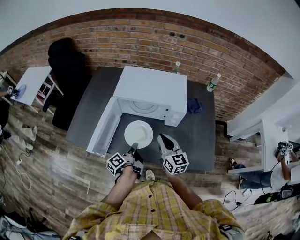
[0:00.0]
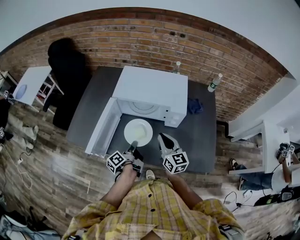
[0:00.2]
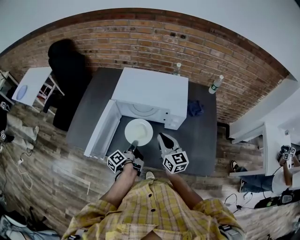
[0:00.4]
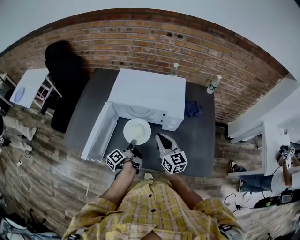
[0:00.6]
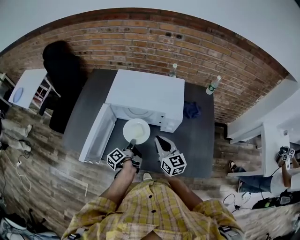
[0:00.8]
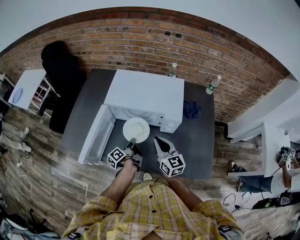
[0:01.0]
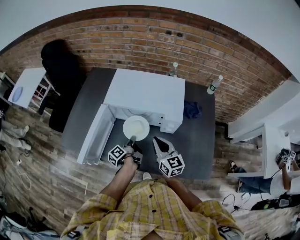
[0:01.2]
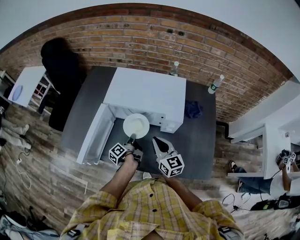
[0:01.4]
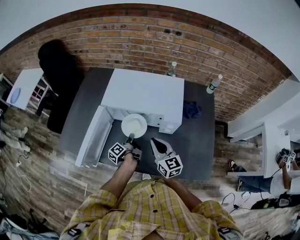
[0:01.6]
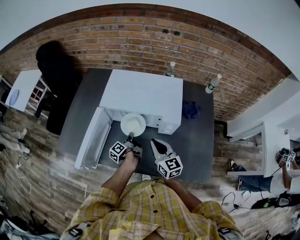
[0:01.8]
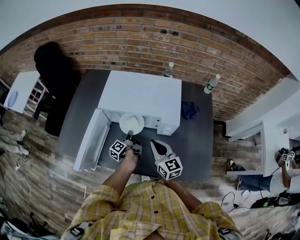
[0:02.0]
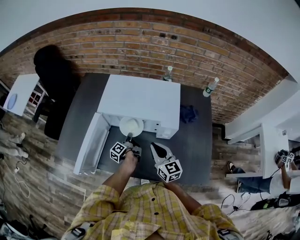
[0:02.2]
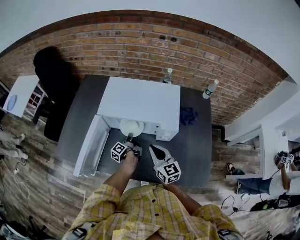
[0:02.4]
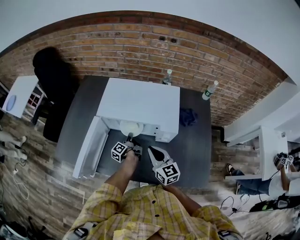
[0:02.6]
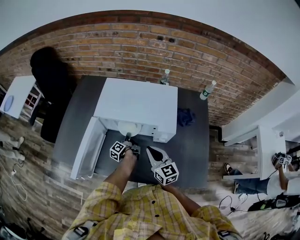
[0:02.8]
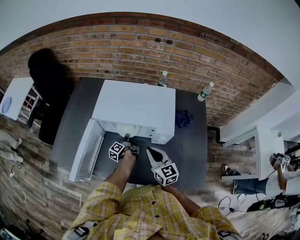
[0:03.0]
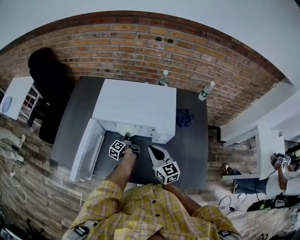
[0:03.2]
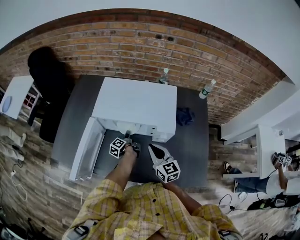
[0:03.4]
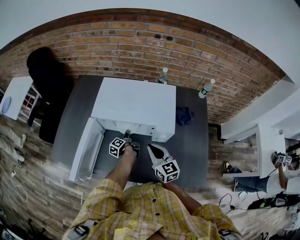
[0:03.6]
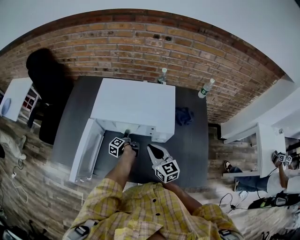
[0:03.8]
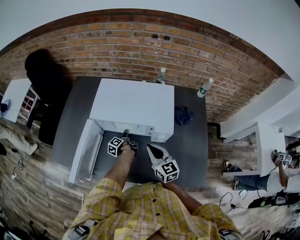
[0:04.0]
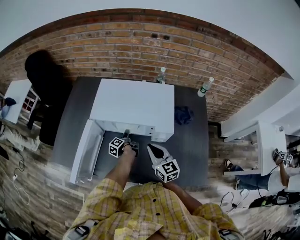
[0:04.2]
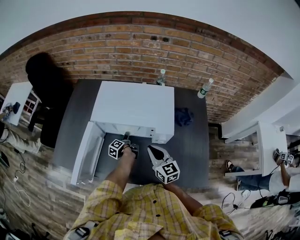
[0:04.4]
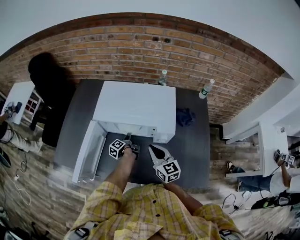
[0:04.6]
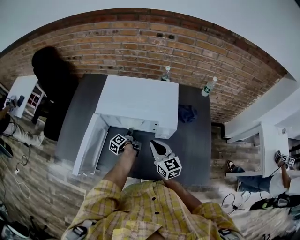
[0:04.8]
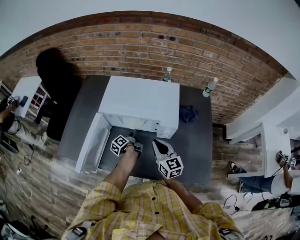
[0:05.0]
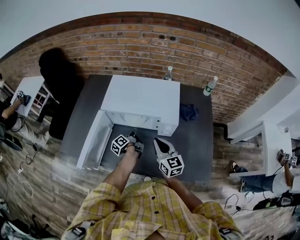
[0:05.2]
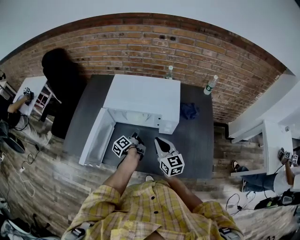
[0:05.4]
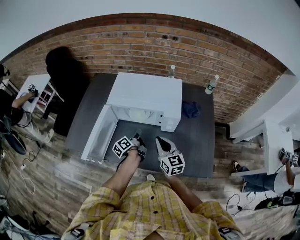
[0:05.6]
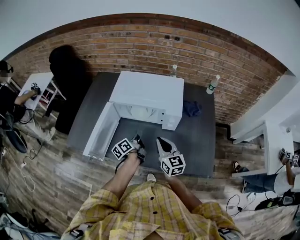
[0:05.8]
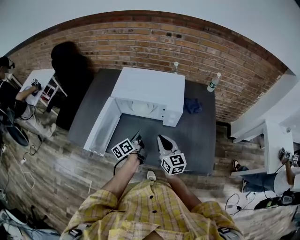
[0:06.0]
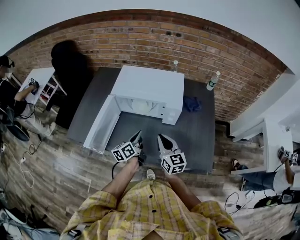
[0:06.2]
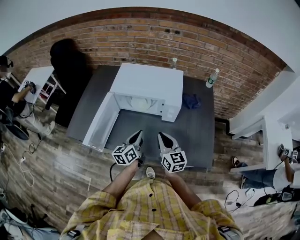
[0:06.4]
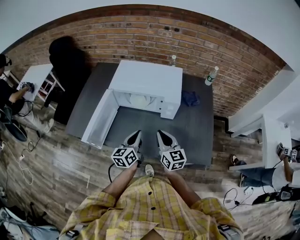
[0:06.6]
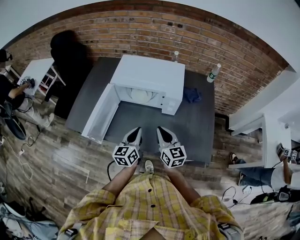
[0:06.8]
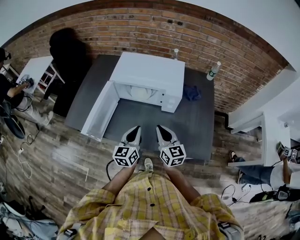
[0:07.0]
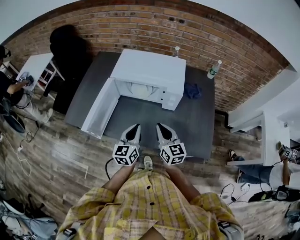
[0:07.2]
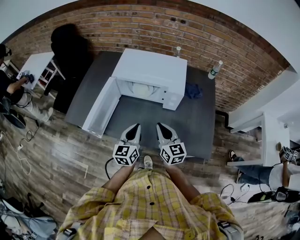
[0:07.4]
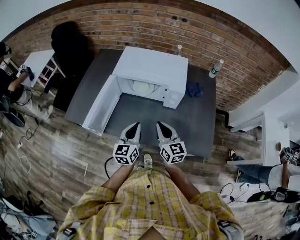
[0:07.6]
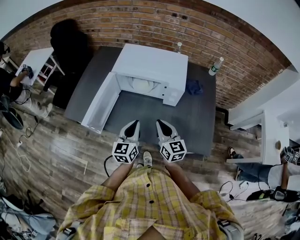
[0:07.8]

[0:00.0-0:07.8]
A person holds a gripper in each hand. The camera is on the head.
0:00.0 to 0:01.6: The right gripper shifts by about 10 cm.
0:04.6 to 0:06.2: The right gripper shifts by approximately 10 cm.

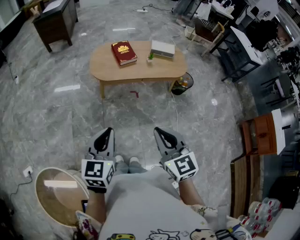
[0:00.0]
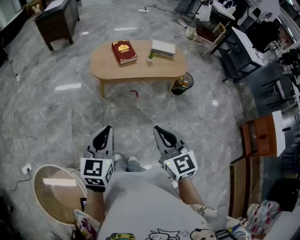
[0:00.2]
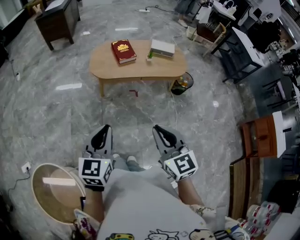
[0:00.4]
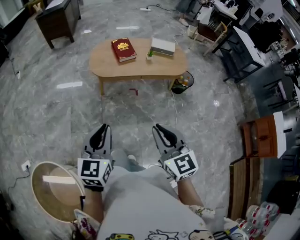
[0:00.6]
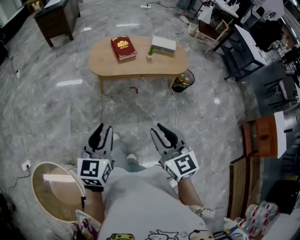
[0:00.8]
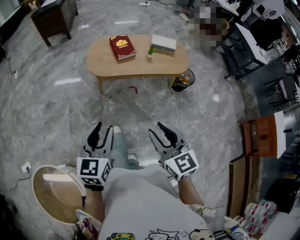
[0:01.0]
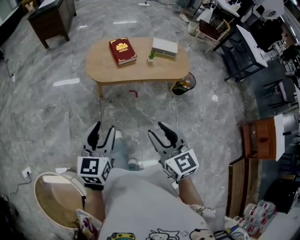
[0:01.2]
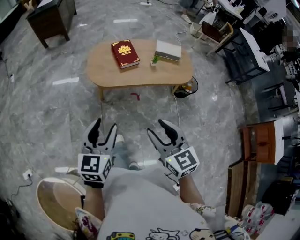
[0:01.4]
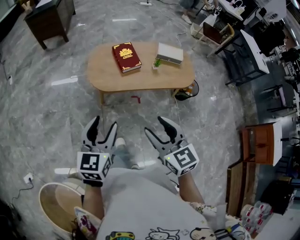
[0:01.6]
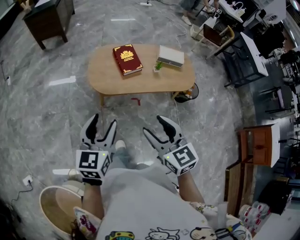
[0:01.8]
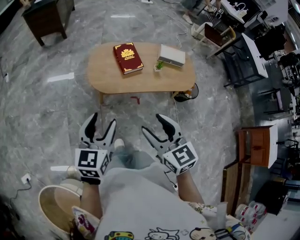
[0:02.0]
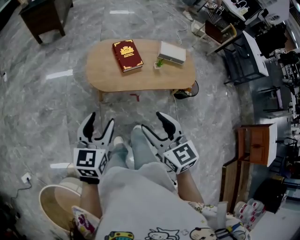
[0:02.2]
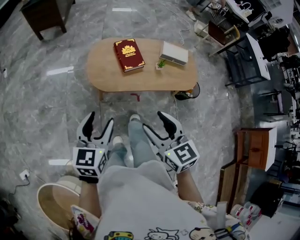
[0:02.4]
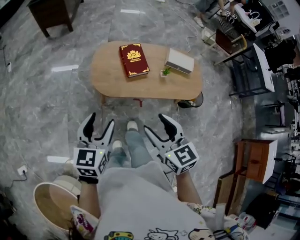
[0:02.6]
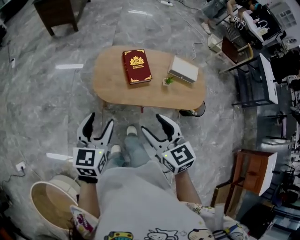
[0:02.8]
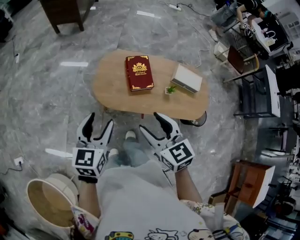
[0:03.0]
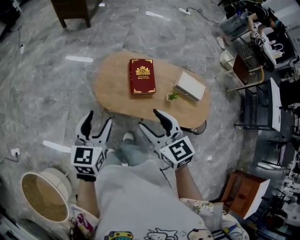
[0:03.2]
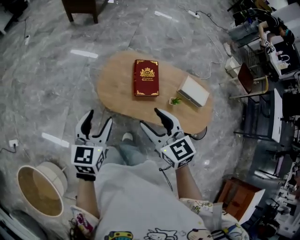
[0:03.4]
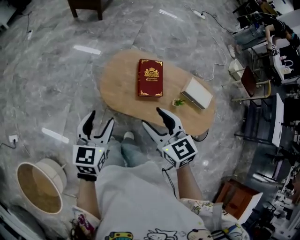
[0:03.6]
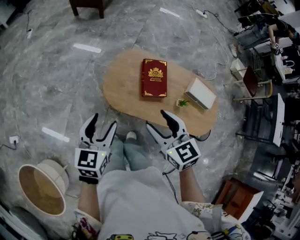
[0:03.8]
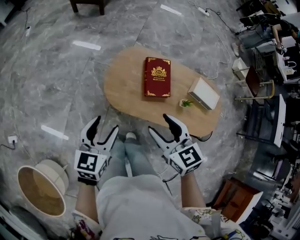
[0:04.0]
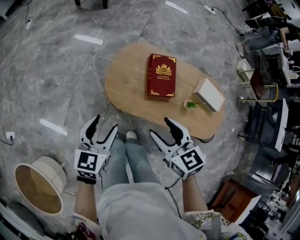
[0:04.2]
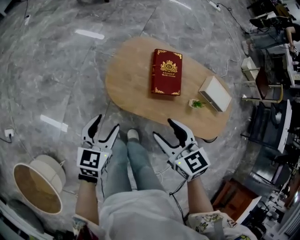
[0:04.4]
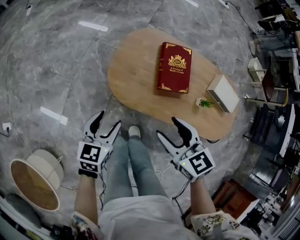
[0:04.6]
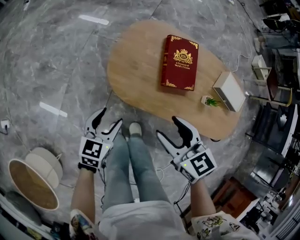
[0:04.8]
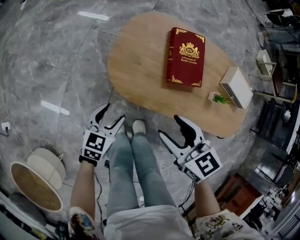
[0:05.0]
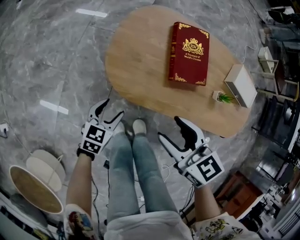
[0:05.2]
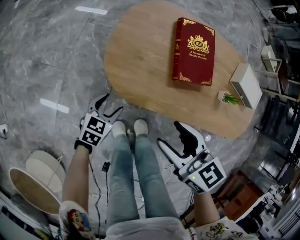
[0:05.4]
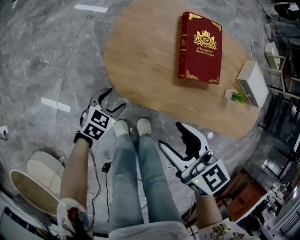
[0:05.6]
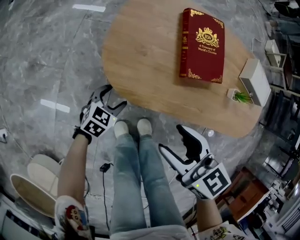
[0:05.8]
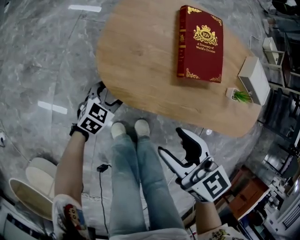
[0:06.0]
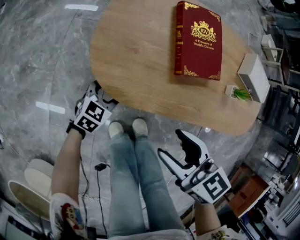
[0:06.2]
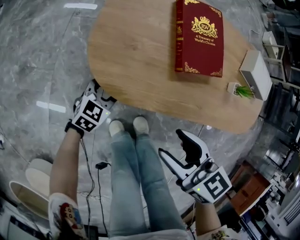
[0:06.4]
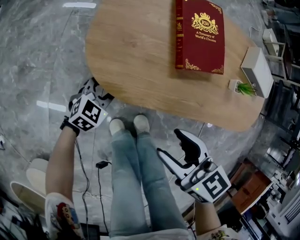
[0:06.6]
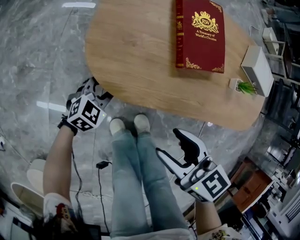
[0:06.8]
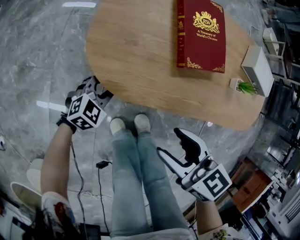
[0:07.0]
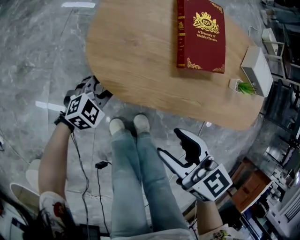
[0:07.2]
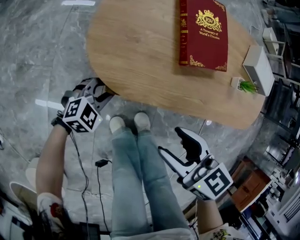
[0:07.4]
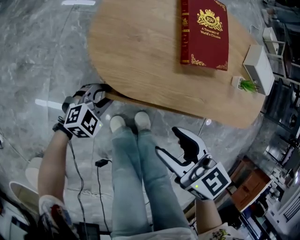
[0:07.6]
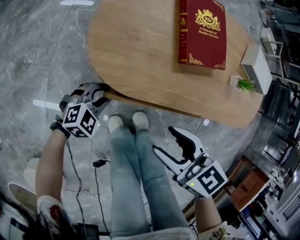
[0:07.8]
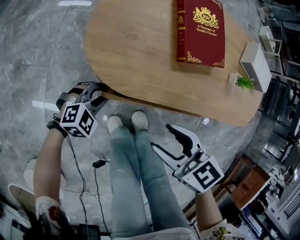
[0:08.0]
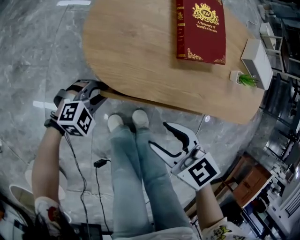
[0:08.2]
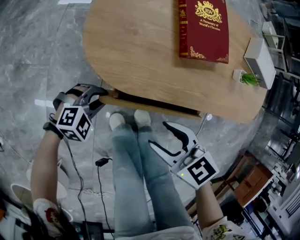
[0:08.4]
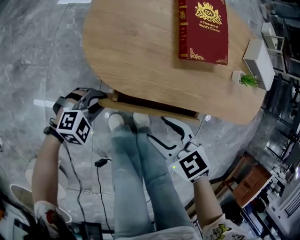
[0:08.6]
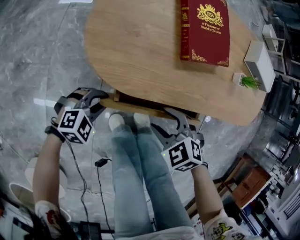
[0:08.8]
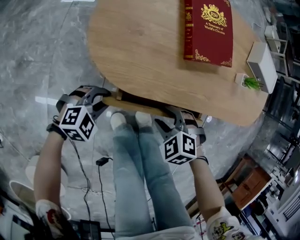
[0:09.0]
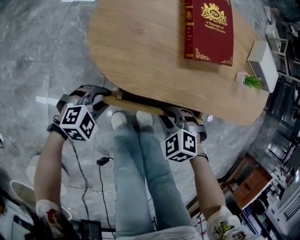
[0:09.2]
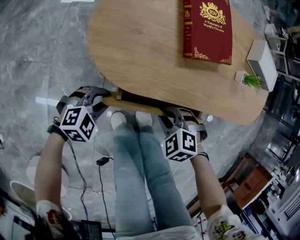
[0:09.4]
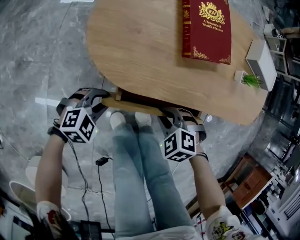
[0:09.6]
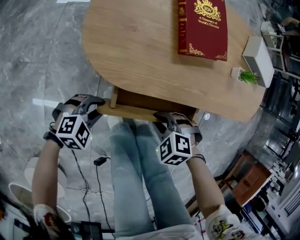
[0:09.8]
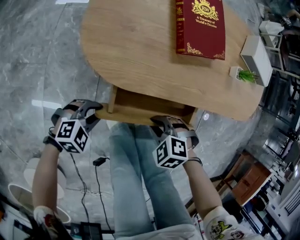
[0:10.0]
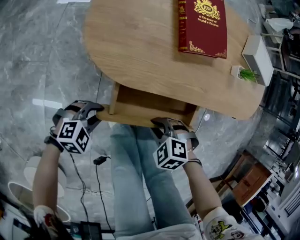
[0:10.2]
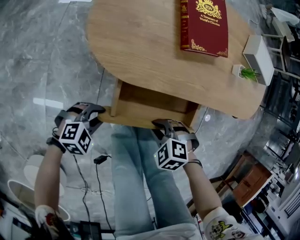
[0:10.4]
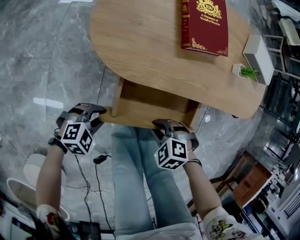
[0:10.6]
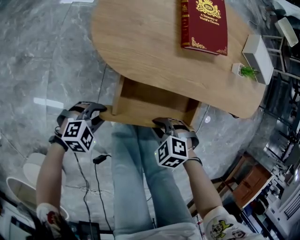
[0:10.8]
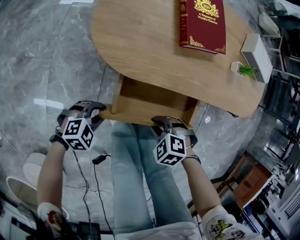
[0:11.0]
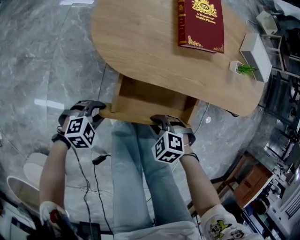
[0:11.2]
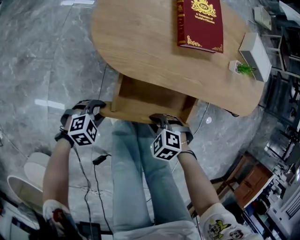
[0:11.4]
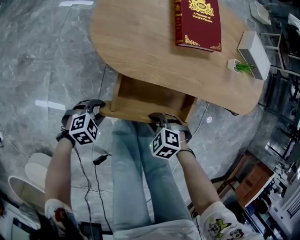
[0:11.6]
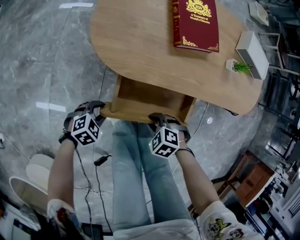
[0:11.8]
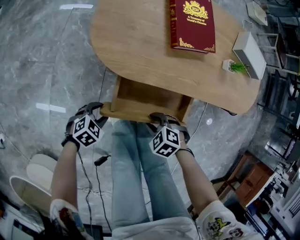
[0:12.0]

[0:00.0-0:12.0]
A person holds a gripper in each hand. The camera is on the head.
0:00.0 to 0:01.6: The grippers both shift forward by approximately 20 cm. The left gripper opens, while the right gripper opens up.
0:01.6 to 0:03.0: Both grippers move forward, approximately 20 cm.
0:03.0 to 0:04.4: The left gripper shifts some 20 cm downward. The right gripper goes about 15 cm downward and forward.
0:04.4 to 0:06.0: The left gripper is displaced downward by some 35 cm, and turns by approximately 30 degrees. Meanwhile the right gripper goes approximately 20 cm downward.
0:06.0 to 0:07.6: The left gripper swivels about 30 degrees, and closes.
0:07.6 to 0:09.0: The right gripper moves downward, some 20 cm, and tips its fingers downward by about 40 degrees.
0:09.0 to 0:10.4: The right gripper ends up approximately 10 cm from where it was, and closes up. The left gripper changes place by roughly 10 cm.
0:10.4 to 0:12.0: The left gripper changes its angle by about 20 degrees.

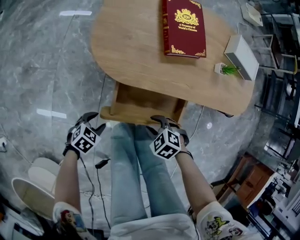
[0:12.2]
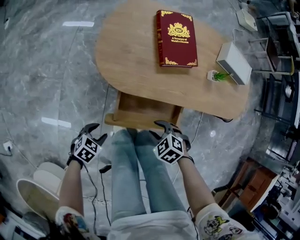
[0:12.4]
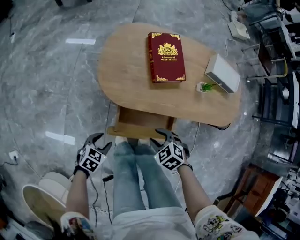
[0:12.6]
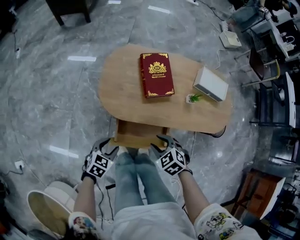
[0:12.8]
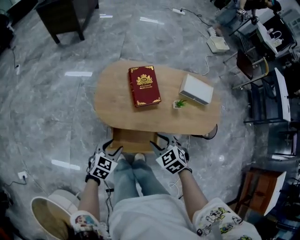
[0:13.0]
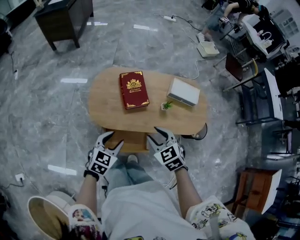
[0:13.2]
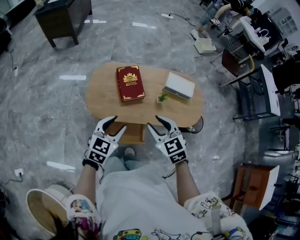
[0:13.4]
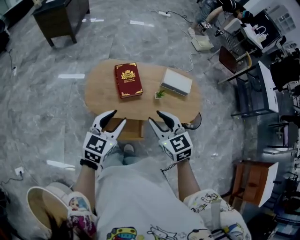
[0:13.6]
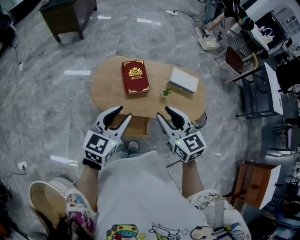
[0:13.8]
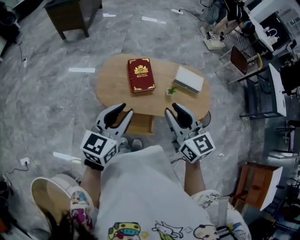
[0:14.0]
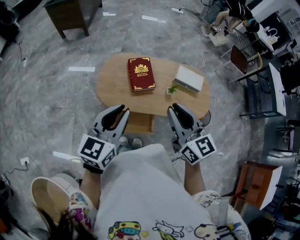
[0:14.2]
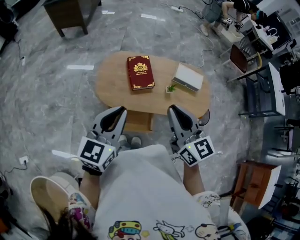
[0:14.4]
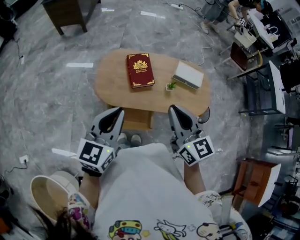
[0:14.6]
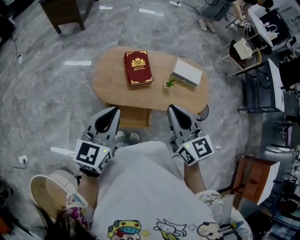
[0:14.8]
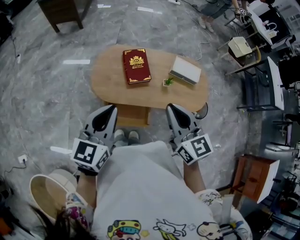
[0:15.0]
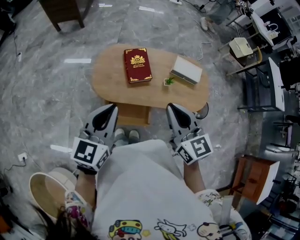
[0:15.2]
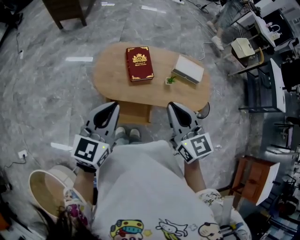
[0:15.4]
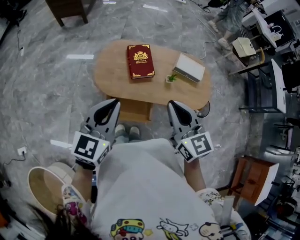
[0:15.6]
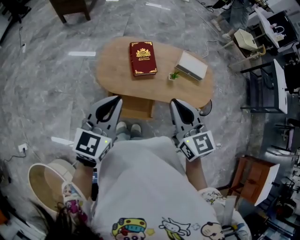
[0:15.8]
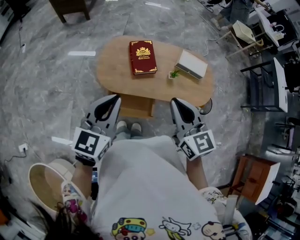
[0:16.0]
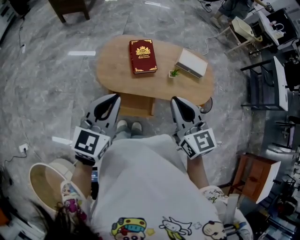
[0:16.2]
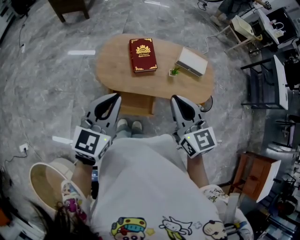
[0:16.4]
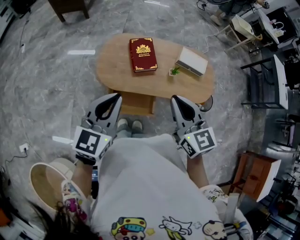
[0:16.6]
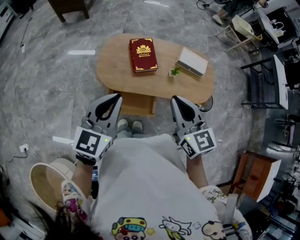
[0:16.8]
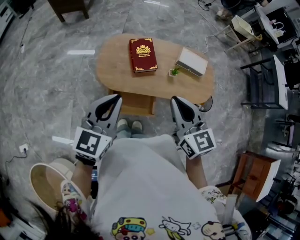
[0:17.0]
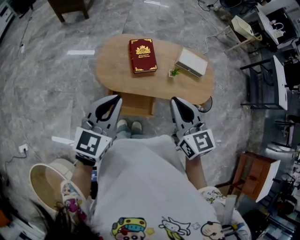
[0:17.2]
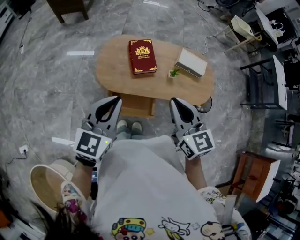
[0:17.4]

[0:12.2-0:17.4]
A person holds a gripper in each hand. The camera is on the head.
0:12.2 to 0:14.0: The grippers both shift upward by approximately 60 cm. The right gripper tips its fingers upward by approximately 60 degrees; the left gripper angles its fingers upward, by some 50 degrees.
0:14.0 to 0:15.6: The right gripper closes, while the left gripper closes up.
0:15.6 to 0:17.4: The grippers move only a little.
